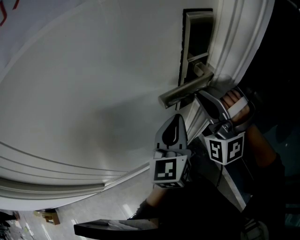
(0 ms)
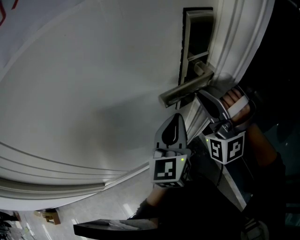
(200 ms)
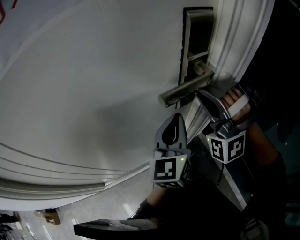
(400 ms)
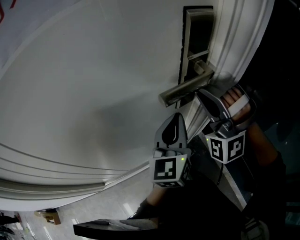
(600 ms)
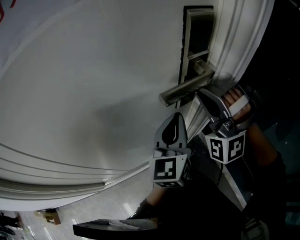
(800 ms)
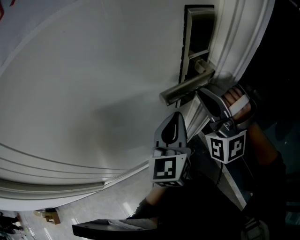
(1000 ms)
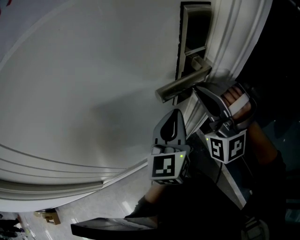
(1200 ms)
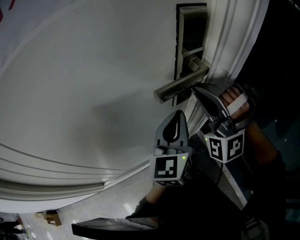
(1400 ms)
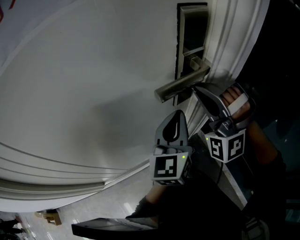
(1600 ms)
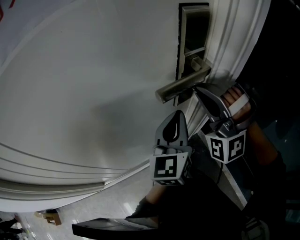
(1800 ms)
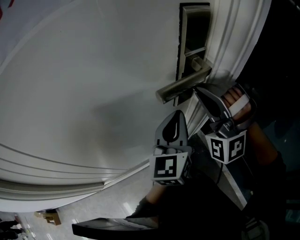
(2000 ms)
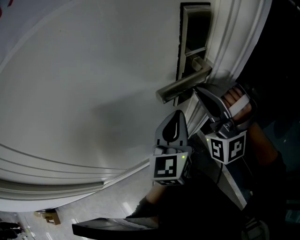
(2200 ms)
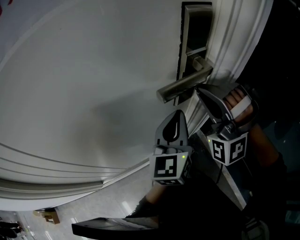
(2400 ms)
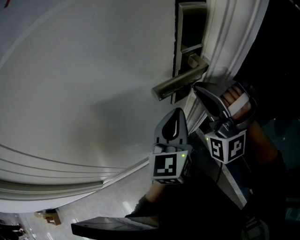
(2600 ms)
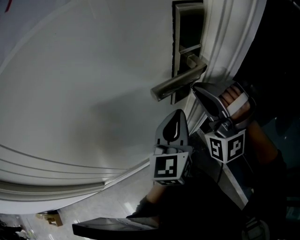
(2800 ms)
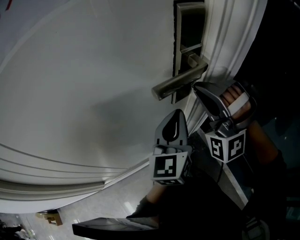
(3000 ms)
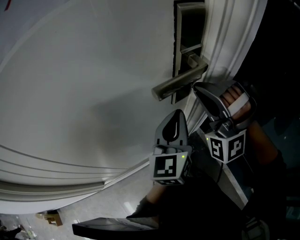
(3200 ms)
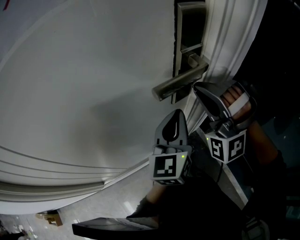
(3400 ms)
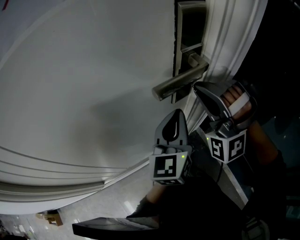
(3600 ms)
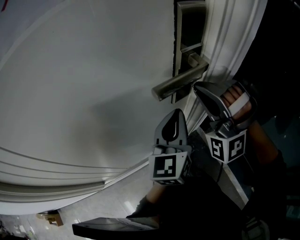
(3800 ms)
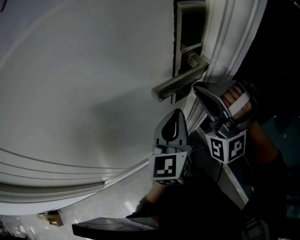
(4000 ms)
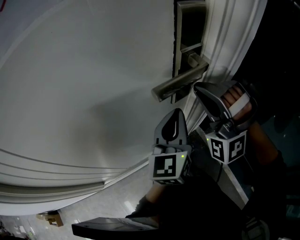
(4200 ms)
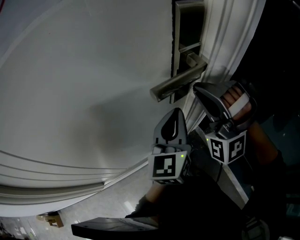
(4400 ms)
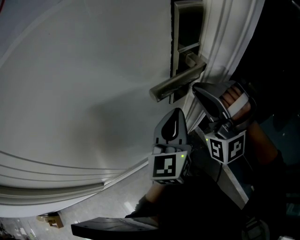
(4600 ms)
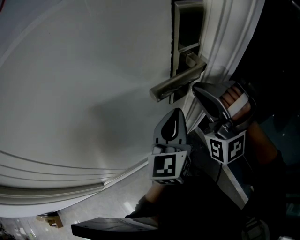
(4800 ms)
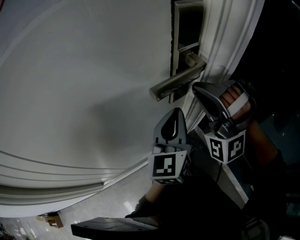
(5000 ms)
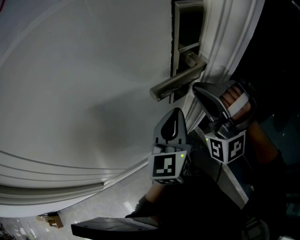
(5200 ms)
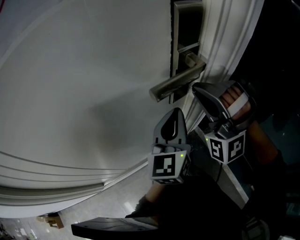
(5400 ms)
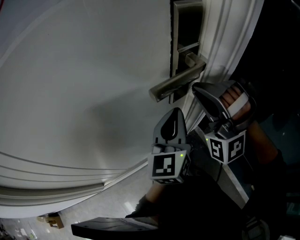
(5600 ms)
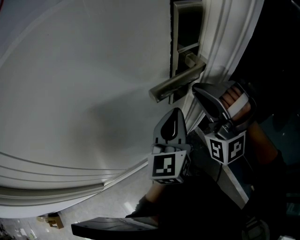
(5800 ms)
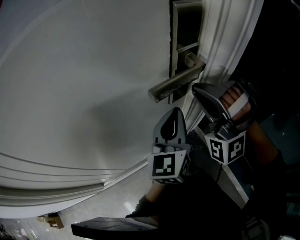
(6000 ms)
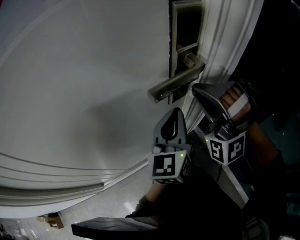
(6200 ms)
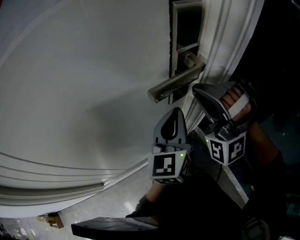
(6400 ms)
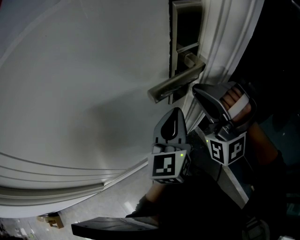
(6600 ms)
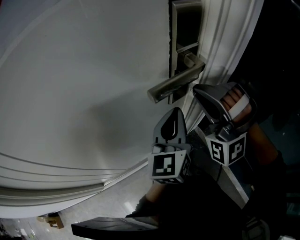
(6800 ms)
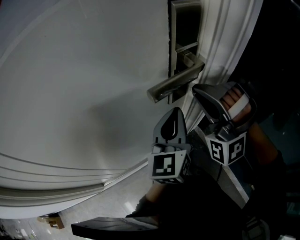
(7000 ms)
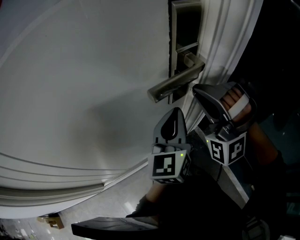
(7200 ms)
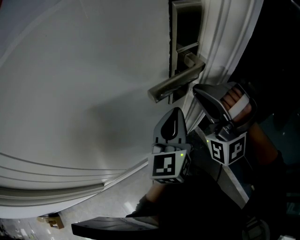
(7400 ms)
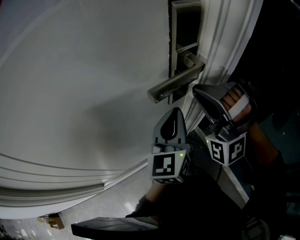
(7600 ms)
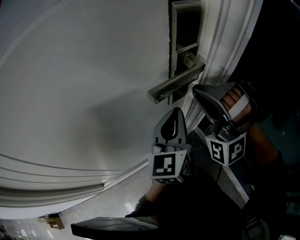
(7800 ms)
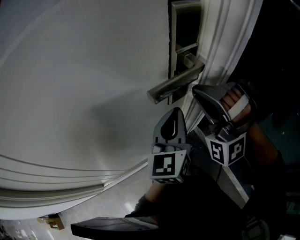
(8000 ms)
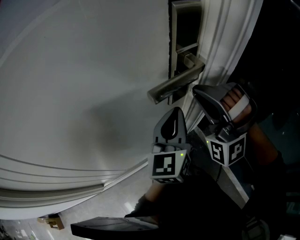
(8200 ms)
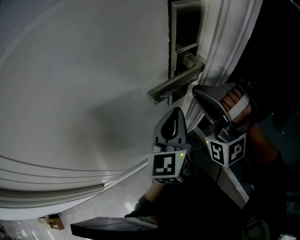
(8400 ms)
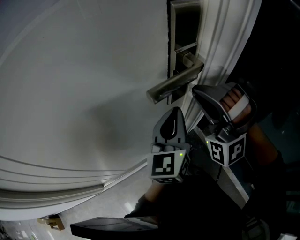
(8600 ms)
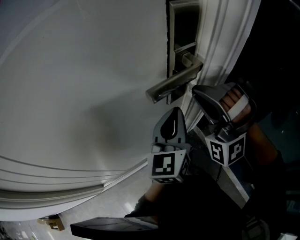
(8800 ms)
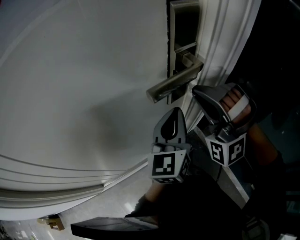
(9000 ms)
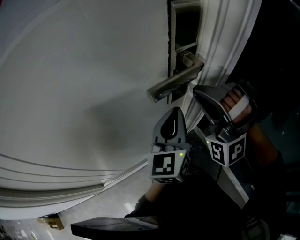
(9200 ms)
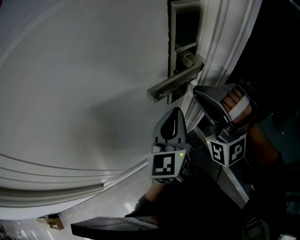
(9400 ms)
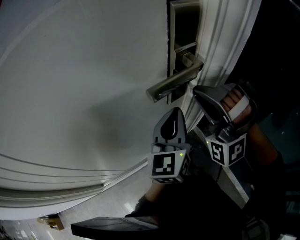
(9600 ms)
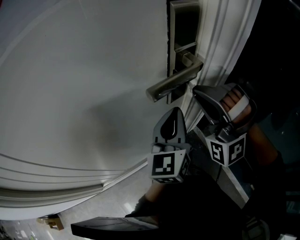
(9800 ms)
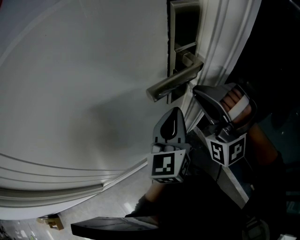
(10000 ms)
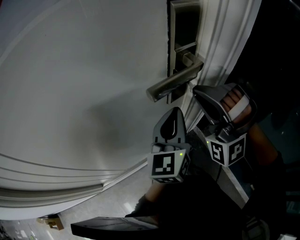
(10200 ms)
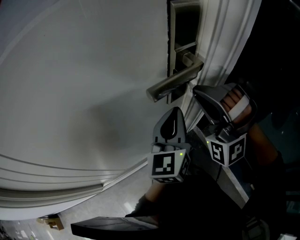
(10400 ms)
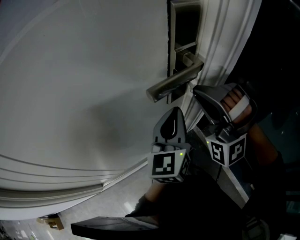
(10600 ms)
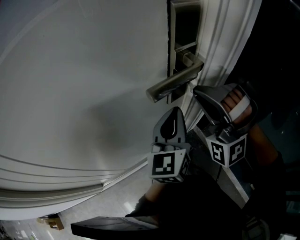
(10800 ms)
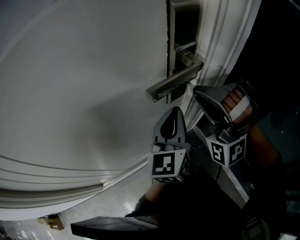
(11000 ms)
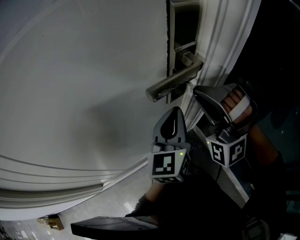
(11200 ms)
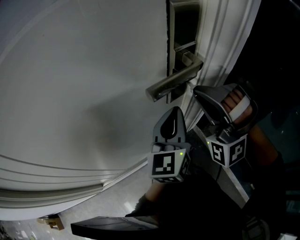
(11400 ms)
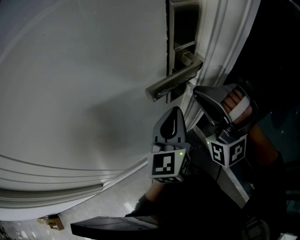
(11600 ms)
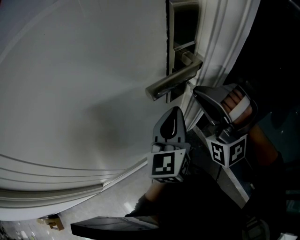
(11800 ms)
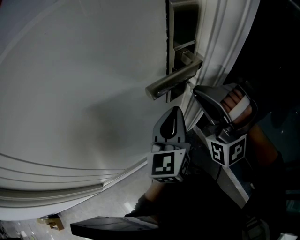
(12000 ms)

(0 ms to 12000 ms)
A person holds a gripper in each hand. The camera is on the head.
0 ms - 1600 ms: There are only small adjustments of the grippers.
1600 ms - 7600 ms: Both grippers stay put.
7600 ms - 12000 ms: Both grippers stay put.

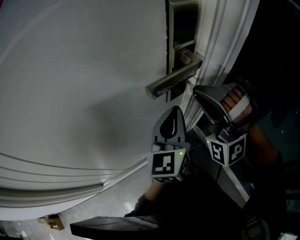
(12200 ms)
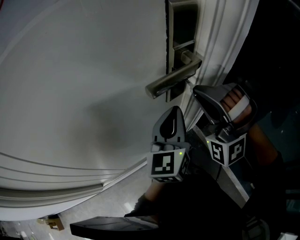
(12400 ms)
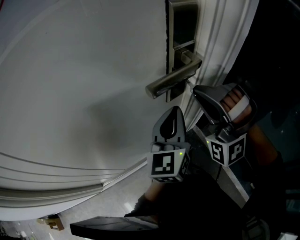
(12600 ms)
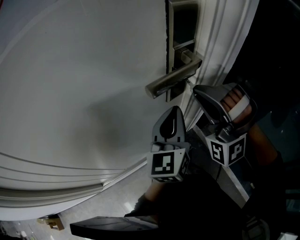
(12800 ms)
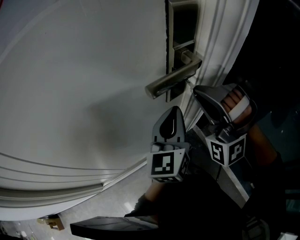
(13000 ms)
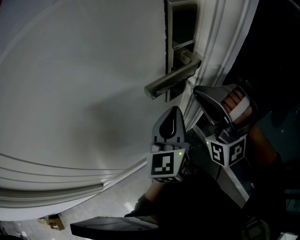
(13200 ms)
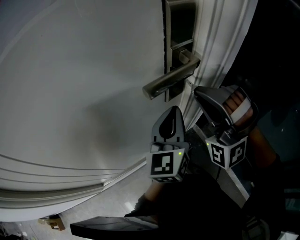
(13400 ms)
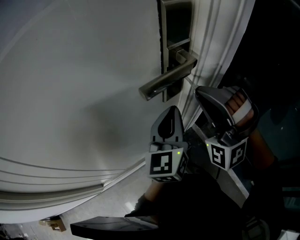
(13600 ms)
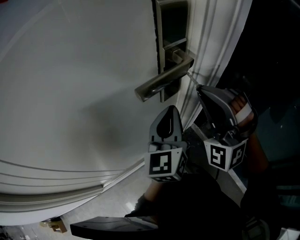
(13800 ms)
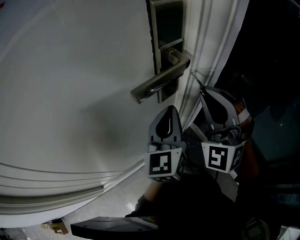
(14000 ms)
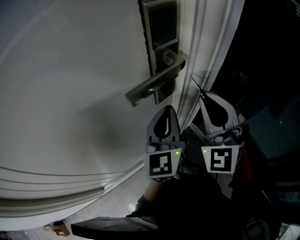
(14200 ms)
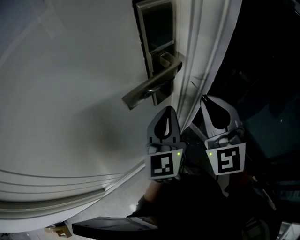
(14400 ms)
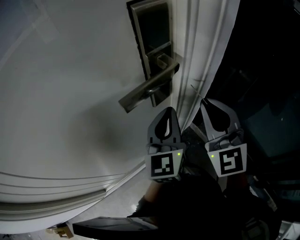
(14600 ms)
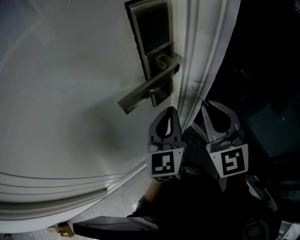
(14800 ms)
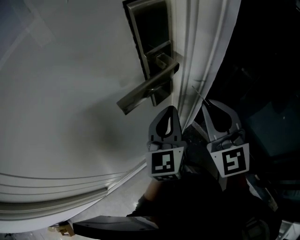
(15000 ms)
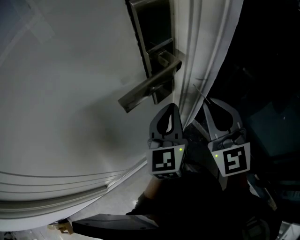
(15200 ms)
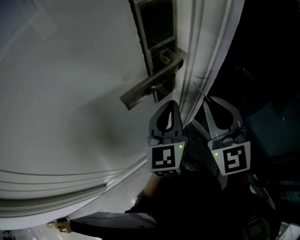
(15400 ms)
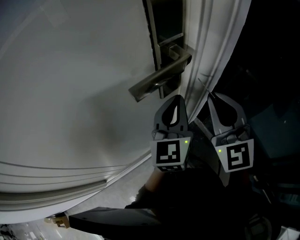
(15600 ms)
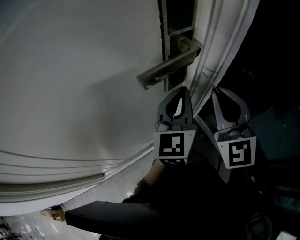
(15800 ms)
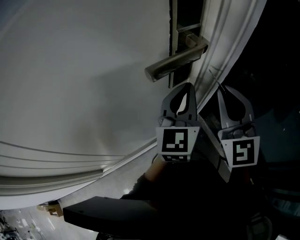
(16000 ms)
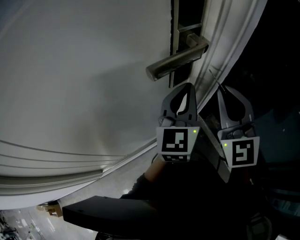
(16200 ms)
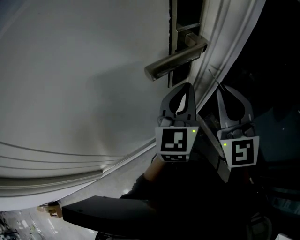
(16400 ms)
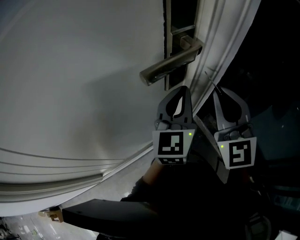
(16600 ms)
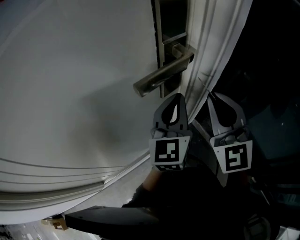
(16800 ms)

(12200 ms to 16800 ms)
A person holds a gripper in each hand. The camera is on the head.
12200 ms - 13800 ms: The grippers stay close to where they were, moving slightly.
13800 ms - 15200 ms: The right gripper shifts by about 5 cm, and rotates around the line of its fingers by roughly 60 degrees, clockwise from behind.
15200 ms - 16800 ms: The grippers make only small movements.

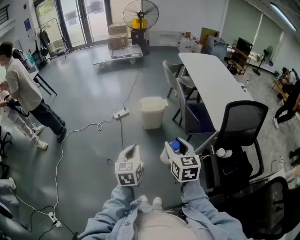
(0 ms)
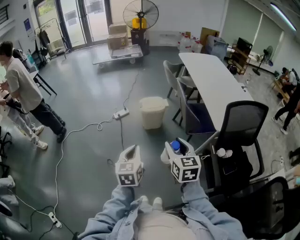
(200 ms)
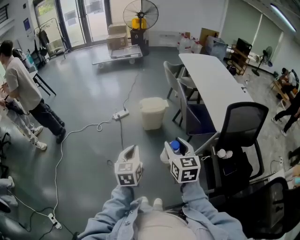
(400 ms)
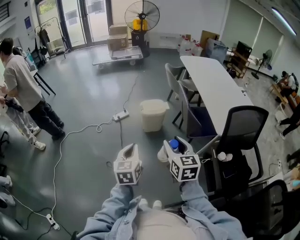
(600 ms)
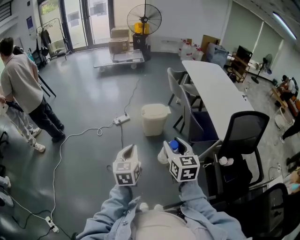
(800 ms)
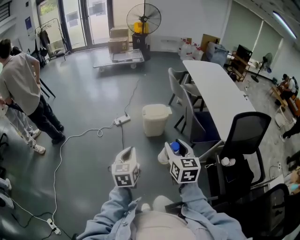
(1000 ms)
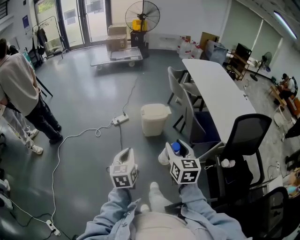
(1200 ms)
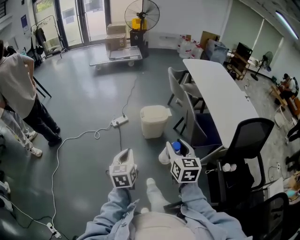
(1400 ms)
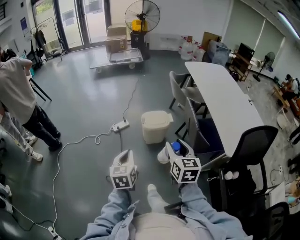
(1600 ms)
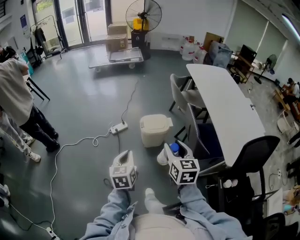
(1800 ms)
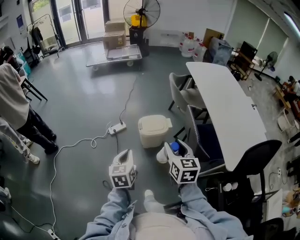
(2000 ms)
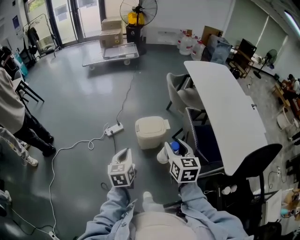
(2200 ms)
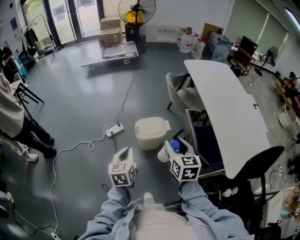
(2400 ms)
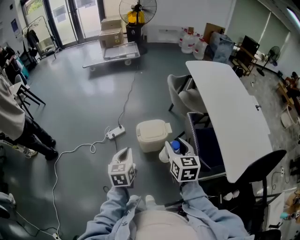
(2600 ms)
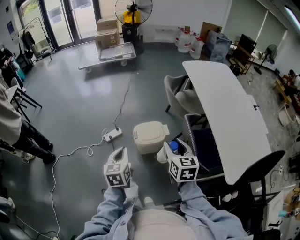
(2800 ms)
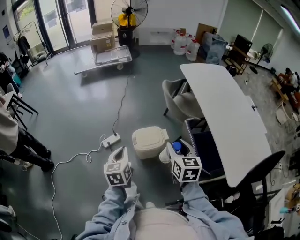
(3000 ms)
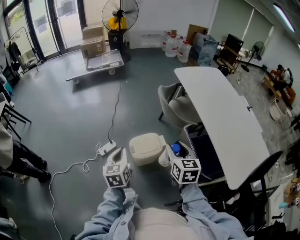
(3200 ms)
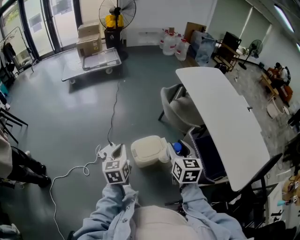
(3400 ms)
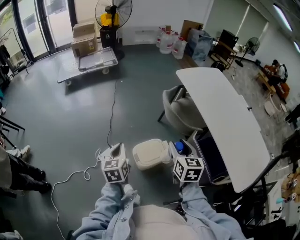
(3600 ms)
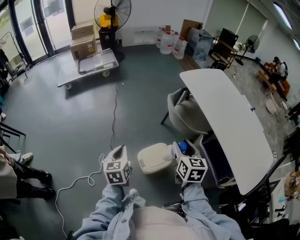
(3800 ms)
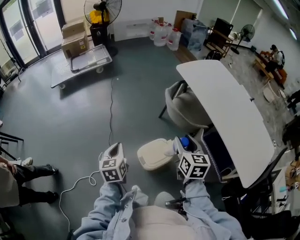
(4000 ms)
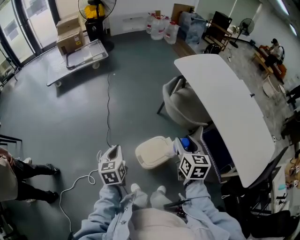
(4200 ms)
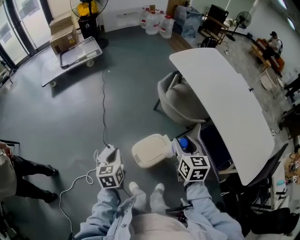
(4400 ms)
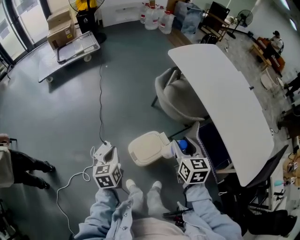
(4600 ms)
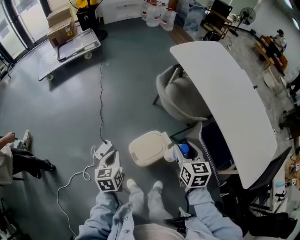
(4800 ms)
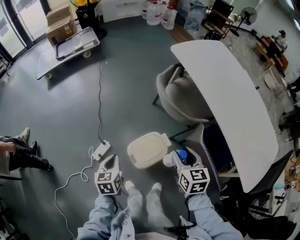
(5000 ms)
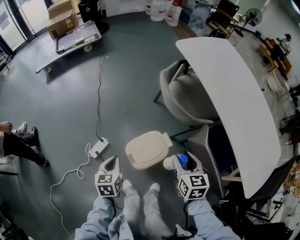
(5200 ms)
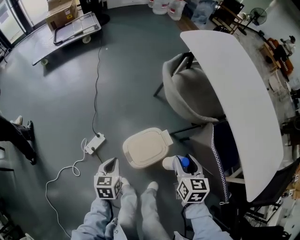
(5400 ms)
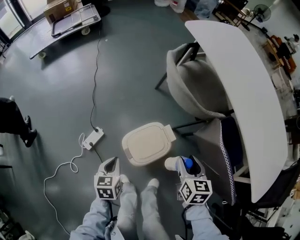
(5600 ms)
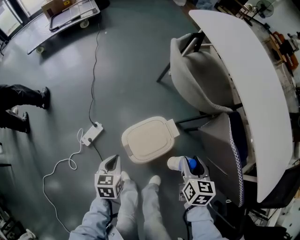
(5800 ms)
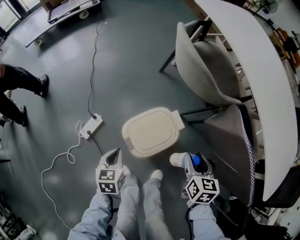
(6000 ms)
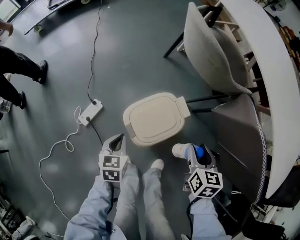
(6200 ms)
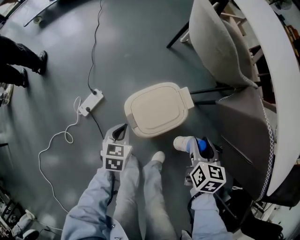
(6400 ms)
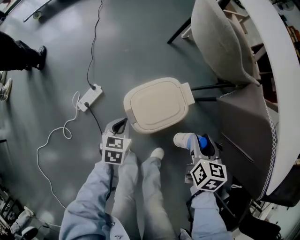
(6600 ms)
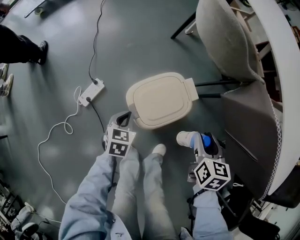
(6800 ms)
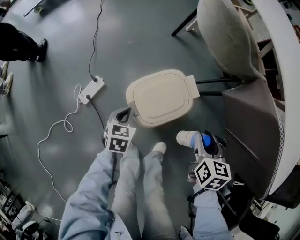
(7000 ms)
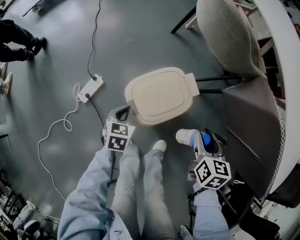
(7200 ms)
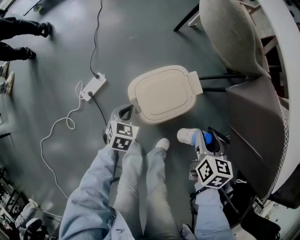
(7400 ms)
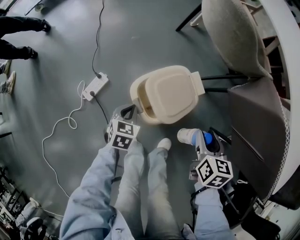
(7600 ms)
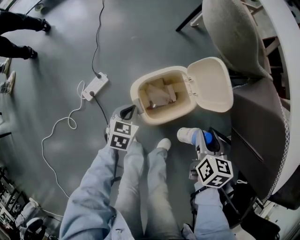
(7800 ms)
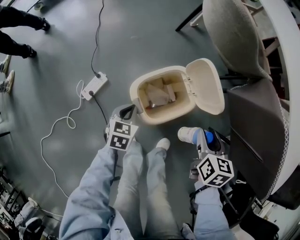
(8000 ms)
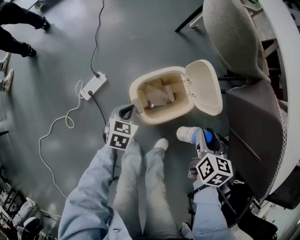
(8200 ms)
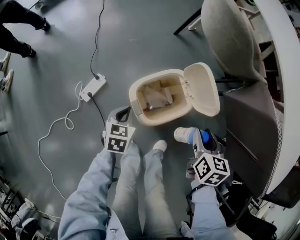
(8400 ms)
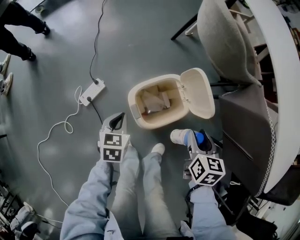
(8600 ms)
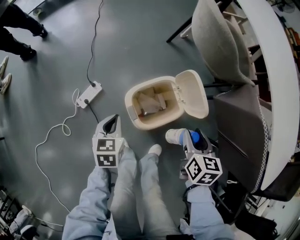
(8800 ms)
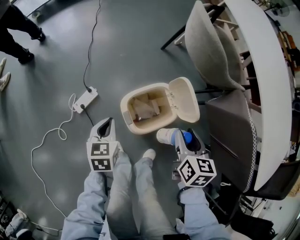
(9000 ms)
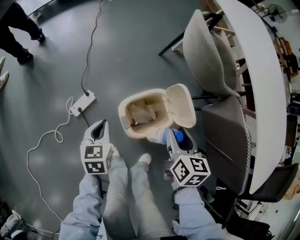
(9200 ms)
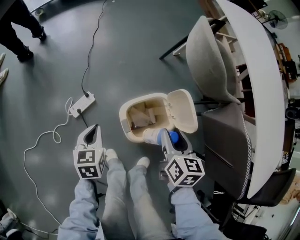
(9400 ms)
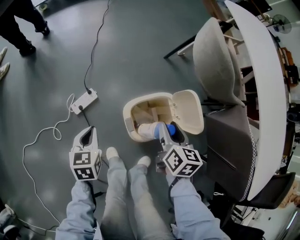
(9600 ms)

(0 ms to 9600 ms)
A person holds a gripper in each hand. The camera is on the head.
0 ms - 1600 ms: The left gripper is displaced forward and to the left by approximately 20 cm. Meanwhile the right gripper goes some 20 cm forward.
1600 ms - 3200 ms: Both grippers move forward, some 35 cm.
3200 ms - 4800 ms: Both grippers move forward and downward, about 20 cm.
4800 ms - 6400 ms: Both grippers travel together downward, about 35 cm.
6400 ms - 8000 ms: The left gripper is displaced downward by approximately 5 cm.
8000 ms - 9600 ms: The left gripper moves to the left and upward, approximately 20 cm, and turns by about 30 degrees. The right gripper goes approximately 15 cm to the left and forward.
